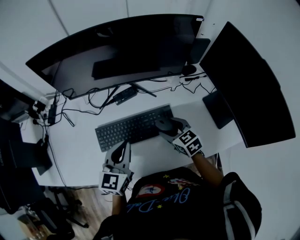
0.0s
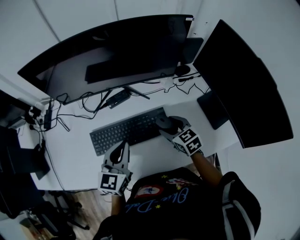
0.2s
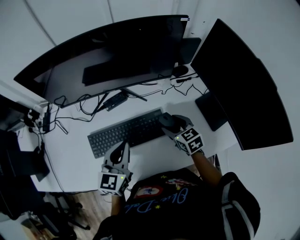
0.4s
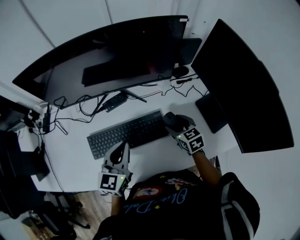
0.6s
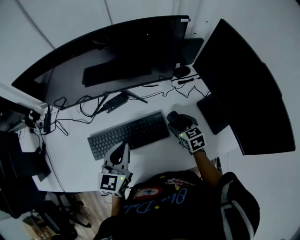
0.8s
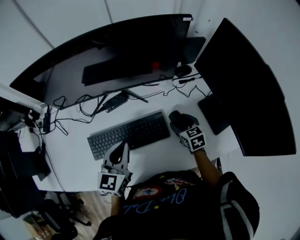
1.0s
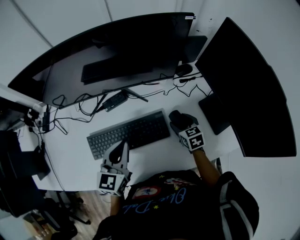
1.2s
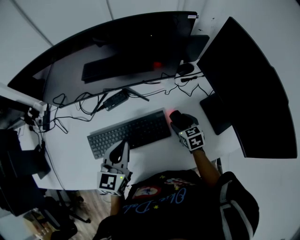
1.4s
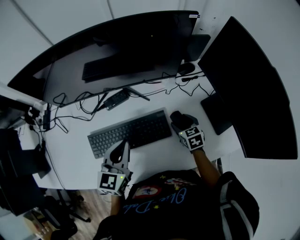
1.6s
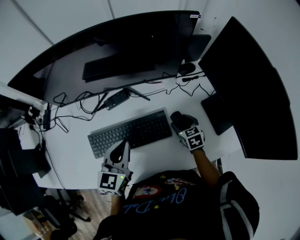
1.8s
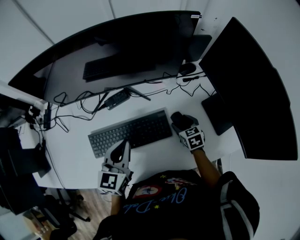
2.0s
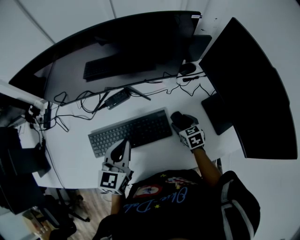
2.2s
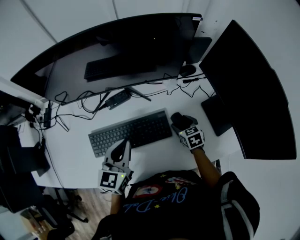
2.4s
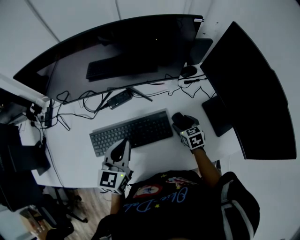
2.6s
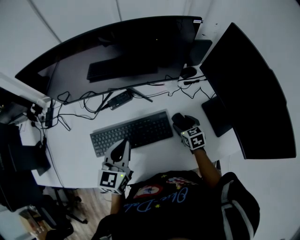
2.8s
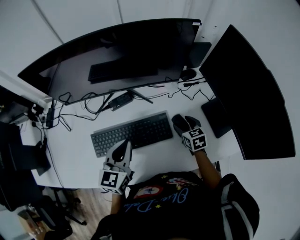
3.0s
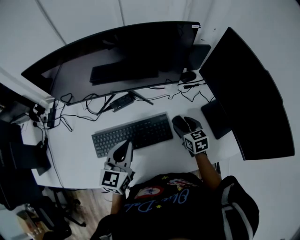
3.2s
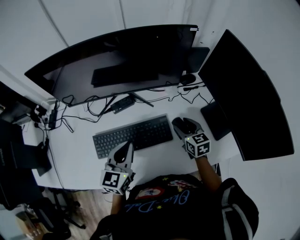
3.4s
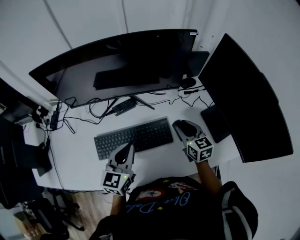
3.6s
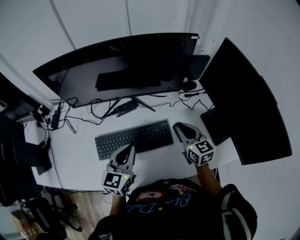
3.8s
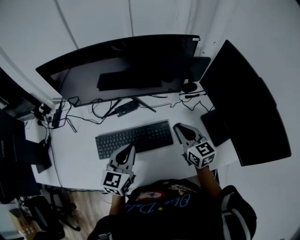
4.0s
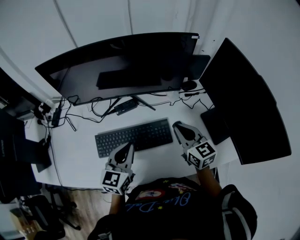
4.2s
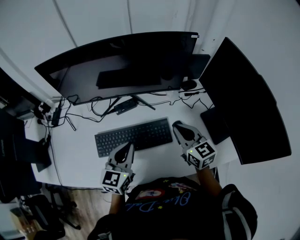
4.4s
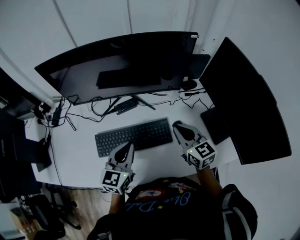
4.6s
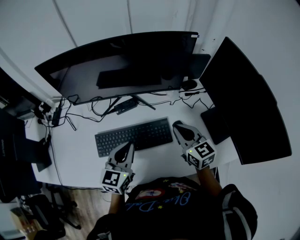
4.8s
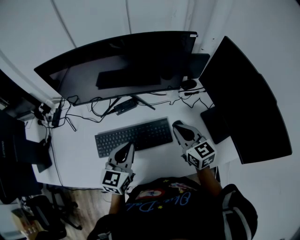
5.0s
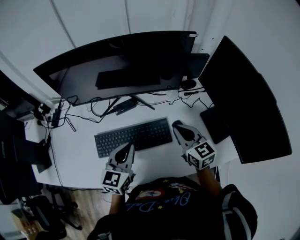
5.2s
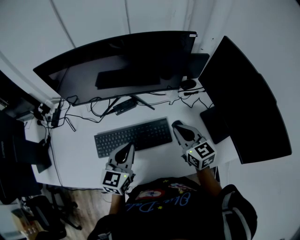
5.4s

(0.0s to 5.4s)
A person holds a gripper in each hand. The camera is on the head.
0.0s - 1.4s: The left gripper changes place by roughly 5 cm; the right gripper goes some 15 cm to the right, downward and forward.
1.4s - 2.8s: The grippers stay close to where they were, moving slightly.
2.8s - 4.0s: The right gripper is displaced upward by approximately 20 cm, changes its angle by approximately 30 degrees, and closes its fingers.
4.0s - 5.4s: The grippers move only a little.

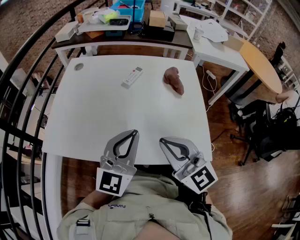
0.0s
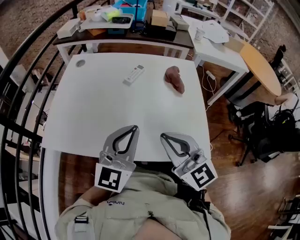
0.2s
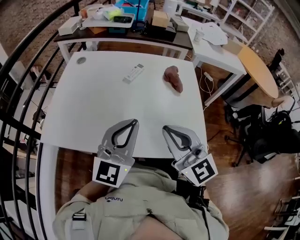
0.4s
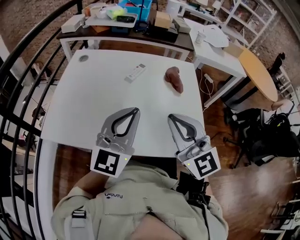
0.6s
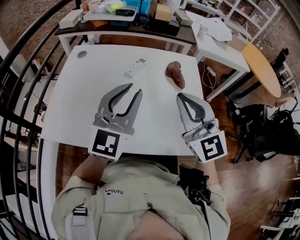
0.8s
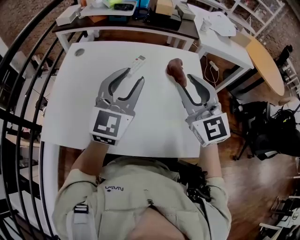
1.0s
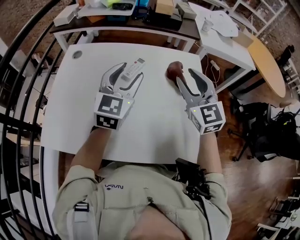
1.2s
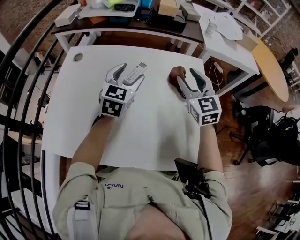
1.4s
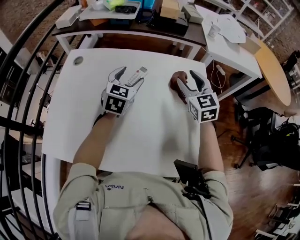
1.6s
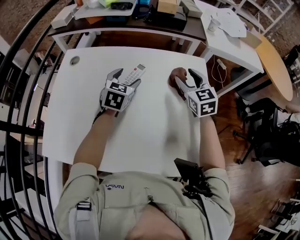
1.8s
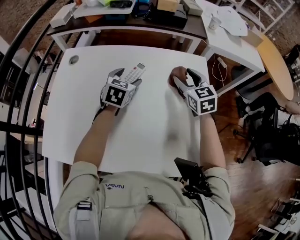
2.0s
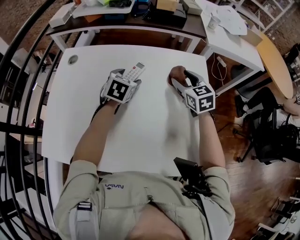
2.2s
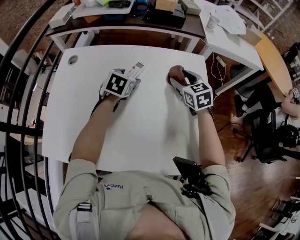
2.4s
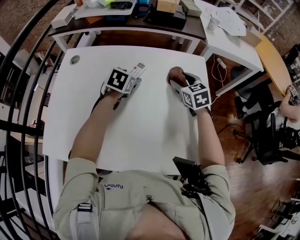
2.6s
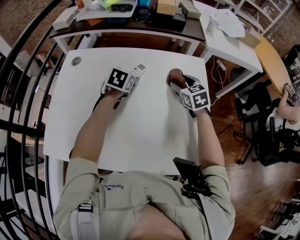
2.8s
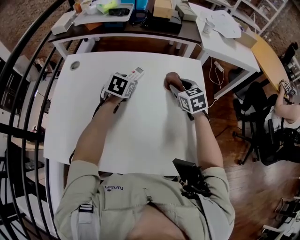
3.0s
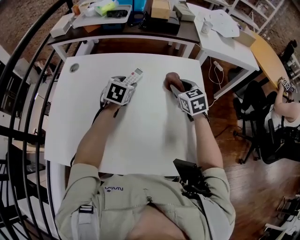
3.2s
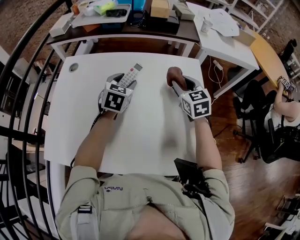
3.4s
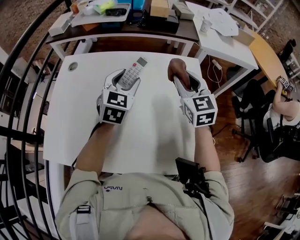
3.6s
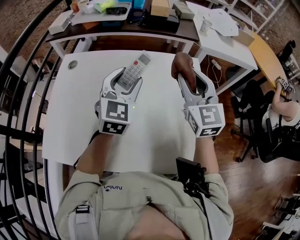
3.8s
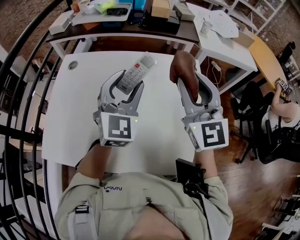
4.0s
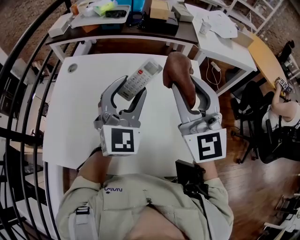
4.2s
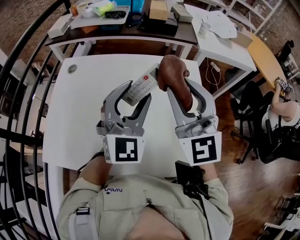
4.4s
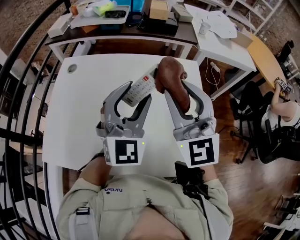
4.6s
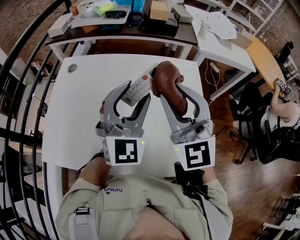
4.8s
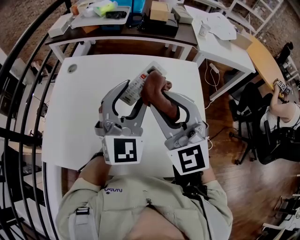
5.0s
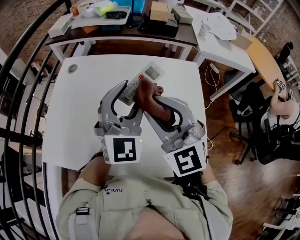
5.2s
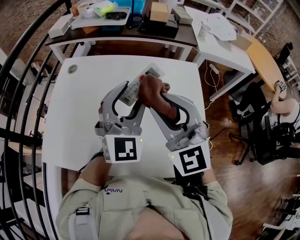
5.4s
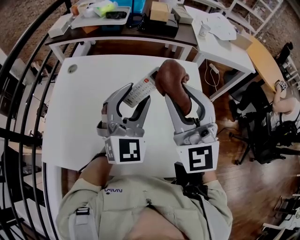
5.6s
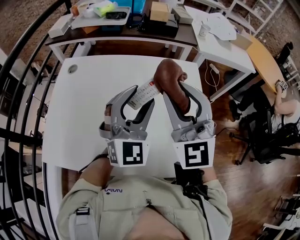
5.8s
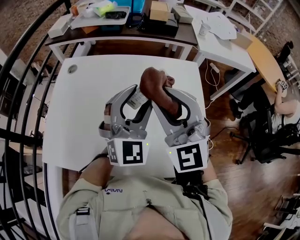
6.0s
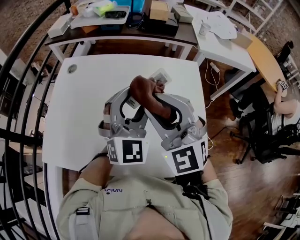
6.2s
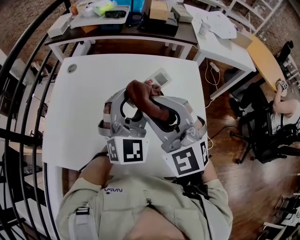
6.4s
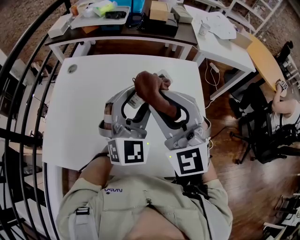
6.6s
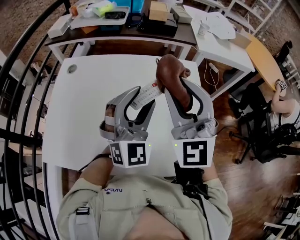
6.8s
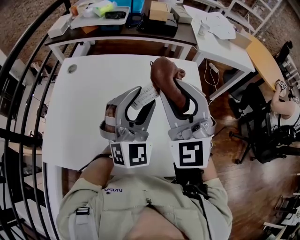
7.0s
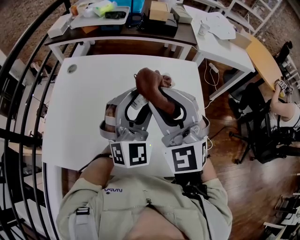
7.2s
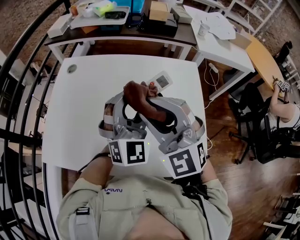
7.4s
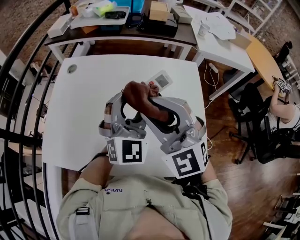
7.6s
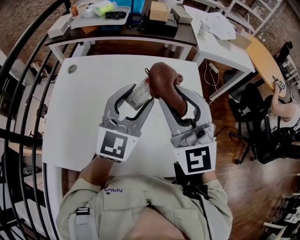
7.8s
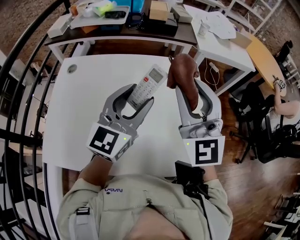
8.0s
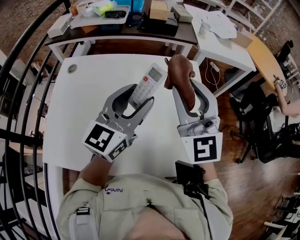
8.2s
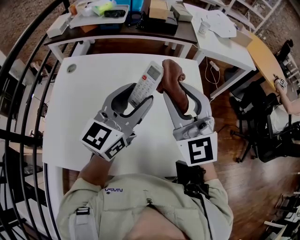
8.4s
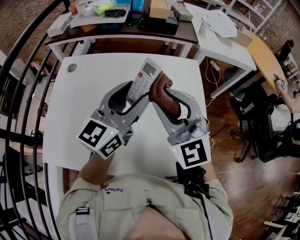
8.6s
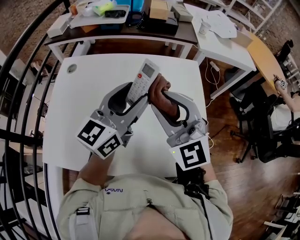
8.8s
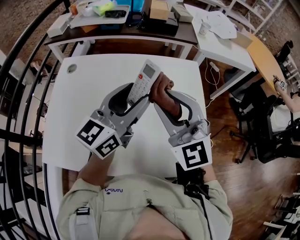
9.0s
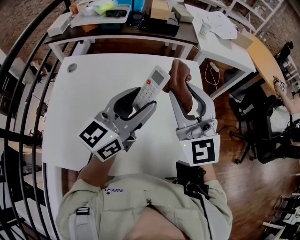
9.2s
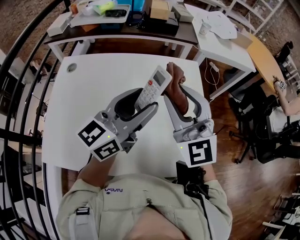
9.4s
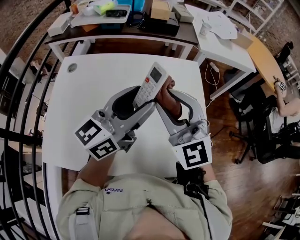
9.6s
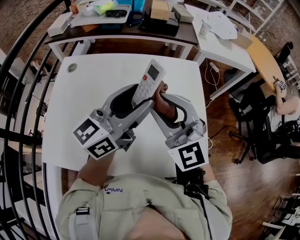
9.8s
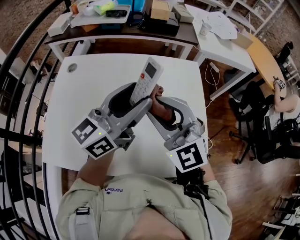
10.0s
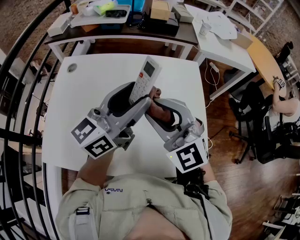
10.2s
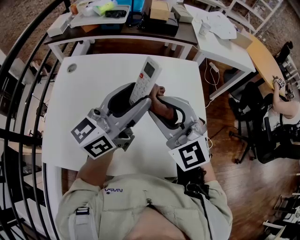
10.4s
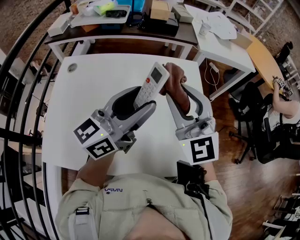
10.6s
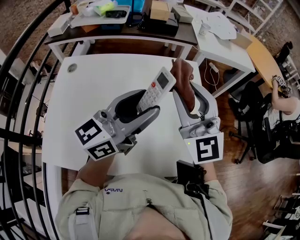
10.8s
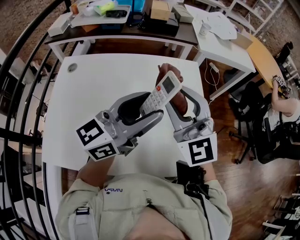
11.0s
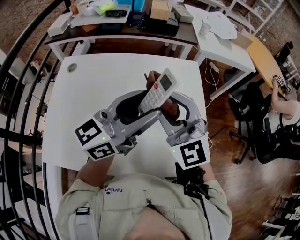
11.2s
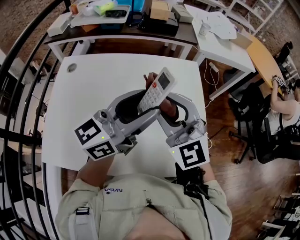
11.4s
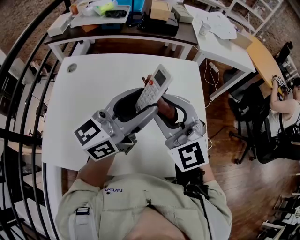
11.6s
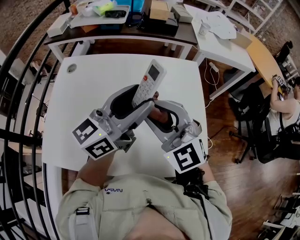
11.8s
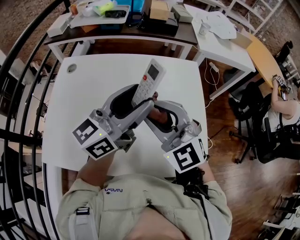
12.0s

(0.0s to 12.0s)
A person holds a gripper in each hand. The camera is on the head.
0.0s - 1.6s: Both grippers travel together forward, roughly 30 cm. The left gripper turns by roughly 30 degrees, and opens its fingers. The right gripper swivels approximately 30 degrees, and opens its fingers.
1.6s - 3.0s: The two grippers go approximately 10 cm downward. The left gripper swivels approximately 20 degrees.
3.0s - 4.4s: Both grippers move upward and backward, some 30 cm. The left gripper angles its fingers upward, by about 50 degrees, while the right gripper tilts its fingers about 40 degrees upward.
6.0s - 7.6s: The grippers move only a little.
7.6s - 9.0s: The left gripper rolls counterclockwise, seen from behind, by about 50 degrees.
9.0s - 10.4s: The grippers move only a little.
10.4s - 12.0s: The right gripper goes upward and returns, roughly 5 cm each way.

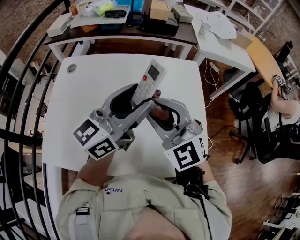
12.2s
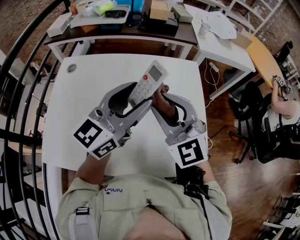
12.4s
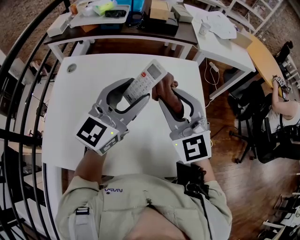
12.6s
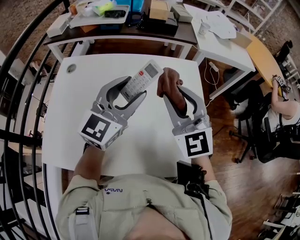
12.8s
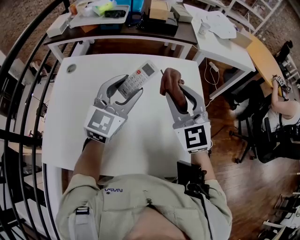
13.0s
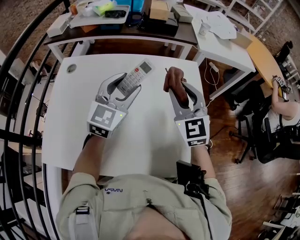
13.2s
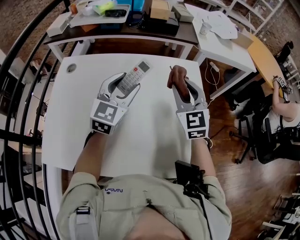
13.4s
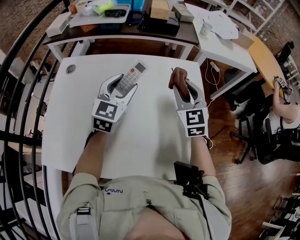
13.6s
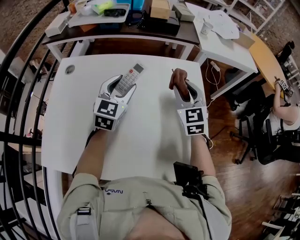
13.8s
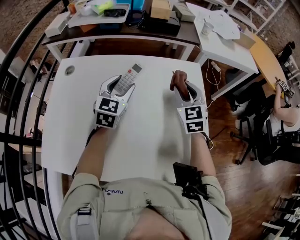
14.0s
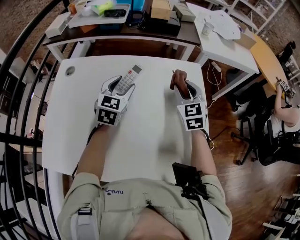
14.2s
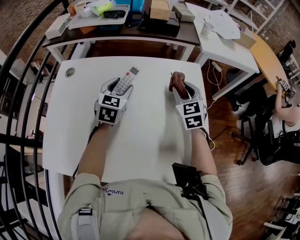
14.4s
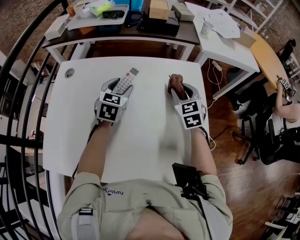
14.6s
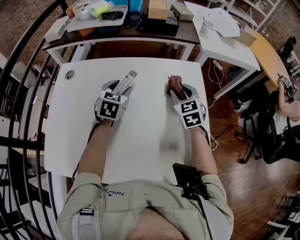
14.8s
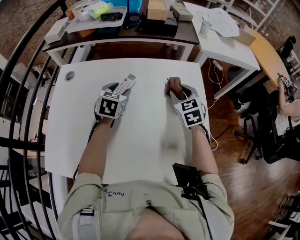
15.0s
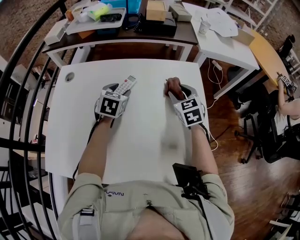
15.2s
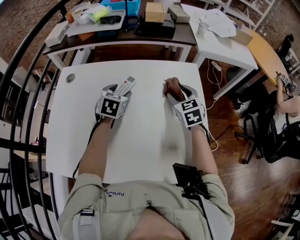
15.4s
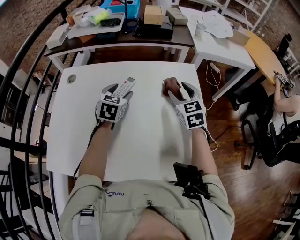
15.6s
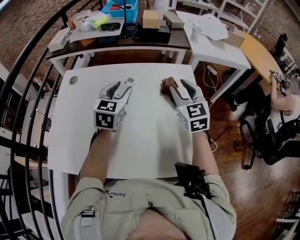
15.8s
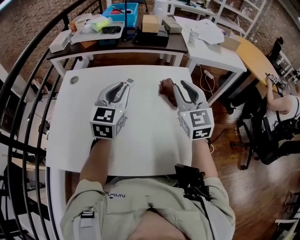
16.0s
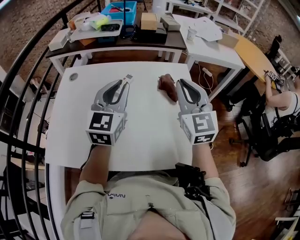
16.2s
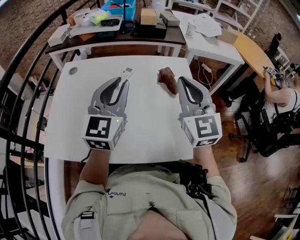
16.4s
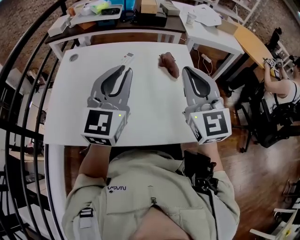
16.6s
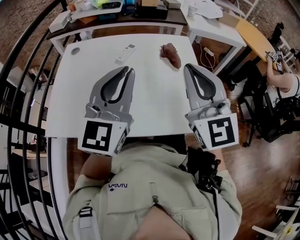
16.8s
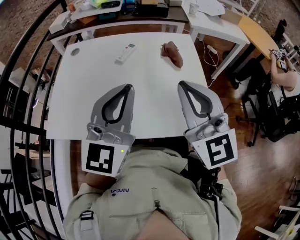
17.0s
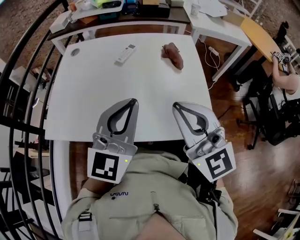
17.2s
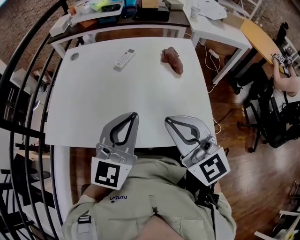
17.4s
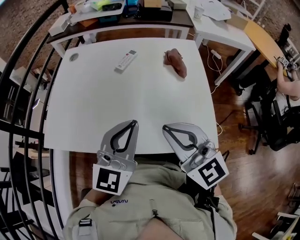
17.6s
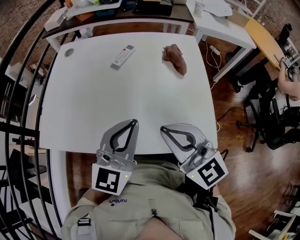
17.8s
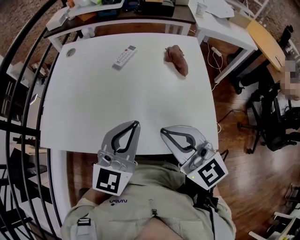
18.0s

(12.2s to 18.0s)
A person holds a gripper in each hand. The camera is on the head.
12.2s - 13.6s: The left gripper is displaced downward and forward by some 15 cm, and rotates about 40 degrees. Meanwhile the right gripper goes some 20 cm forward, to the right and downward, and turns by about 30 degrees.
13.6s - 15.0s: The left gripper is displaced downward and forward by roughly 10 cm, and rotates roughly 30 degrees. Meanwhile the right gripper travels downward by approximately 10 cm.
15.0s - 16.6s: The two grippers go some 35 cm backward and upward. The right gripper points its fingers some 40 degrees further upward, and closes its fingers, while the left gripper tips its fingers upward by roughly 40 degrees, and closes its fingers.
16.6s - 18.0s: The left gripper moves downward and backward, some 15 cm, while the right gripper moves downward, backward and to the left, some 15 cm, and changes its angle by roughly 30 degrees.
